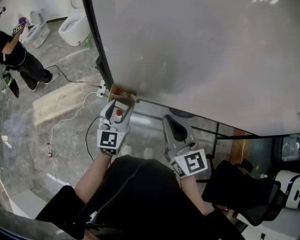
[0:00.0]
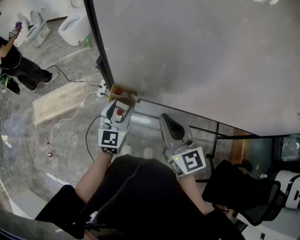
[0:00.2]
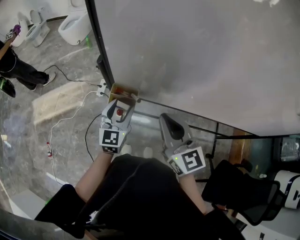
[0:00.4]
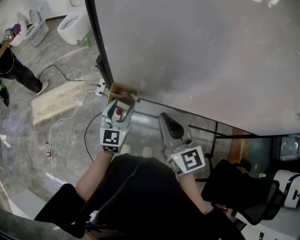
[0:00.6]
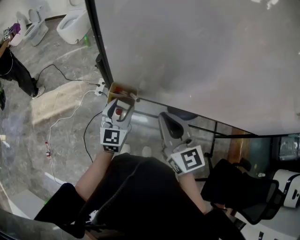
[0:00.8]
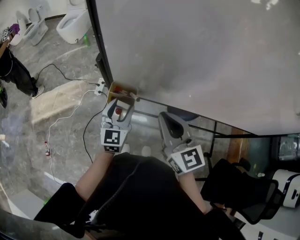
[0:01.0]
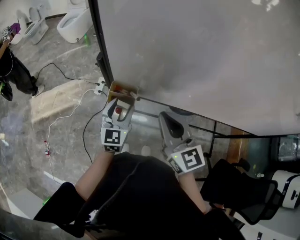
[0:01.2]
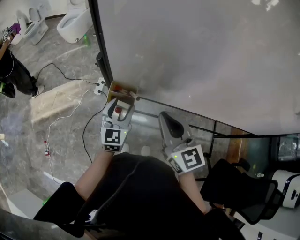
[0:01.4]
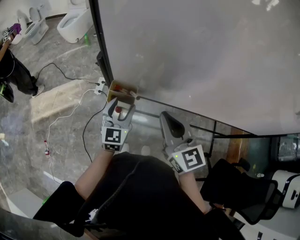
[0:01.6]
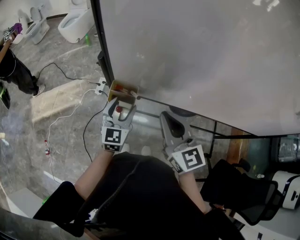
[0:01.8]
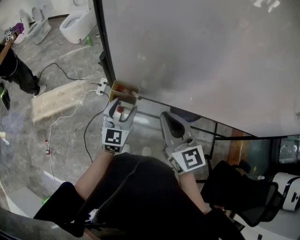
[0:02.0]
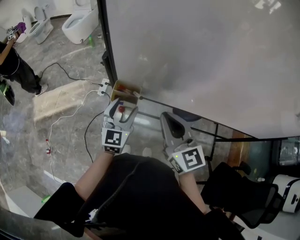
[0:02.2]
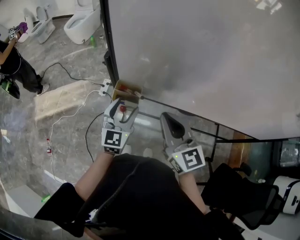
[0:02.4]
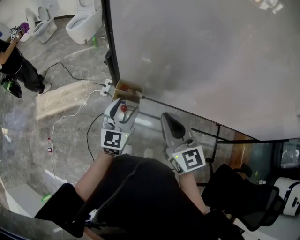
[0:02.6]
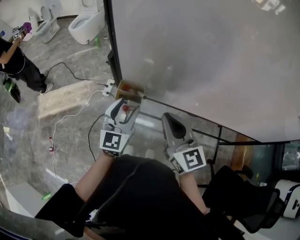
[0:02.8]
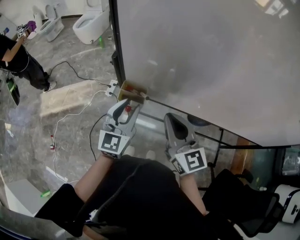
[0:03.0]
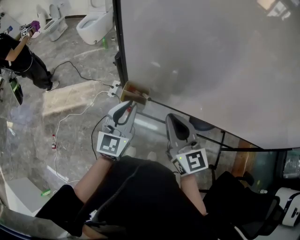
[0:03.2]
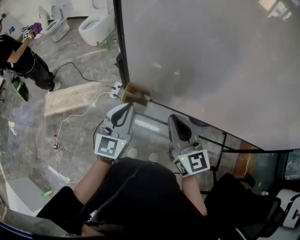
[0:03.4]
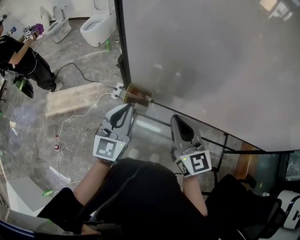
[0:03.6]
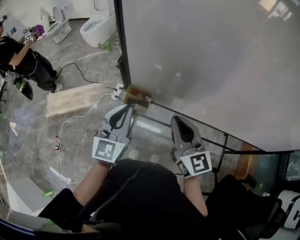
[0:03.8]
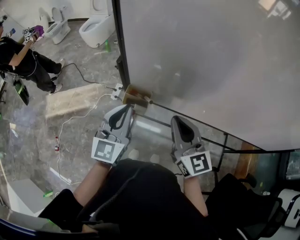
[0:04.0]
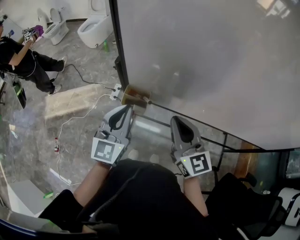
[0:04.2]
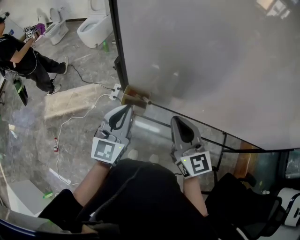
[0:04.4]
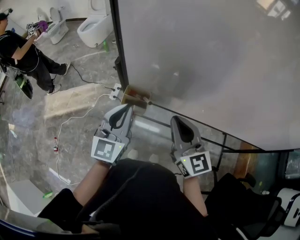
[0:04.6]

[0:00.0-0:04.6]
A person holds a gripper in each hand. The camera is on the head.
0:00.0 to 0:01.6: The grippers make only small movements.
0:01.6 to 0:03.0: The left gripper shifts about 10 cm upward, and closes its fingers.
0:03.0 to 0:04.6: The left gripper shifts by about 5 cm, and closes.

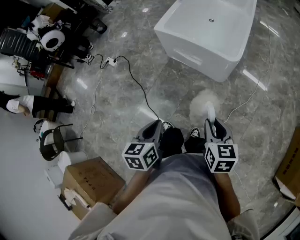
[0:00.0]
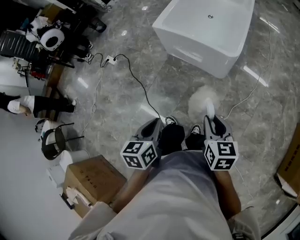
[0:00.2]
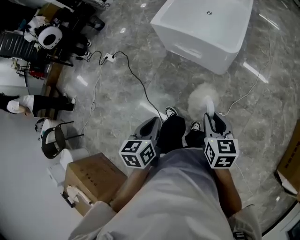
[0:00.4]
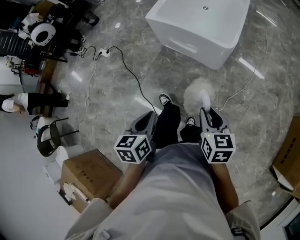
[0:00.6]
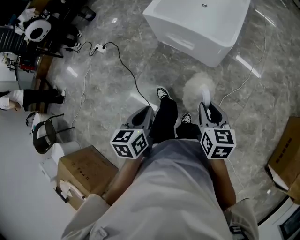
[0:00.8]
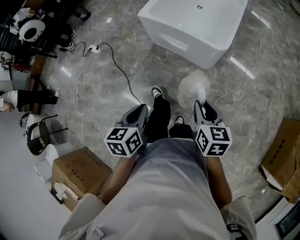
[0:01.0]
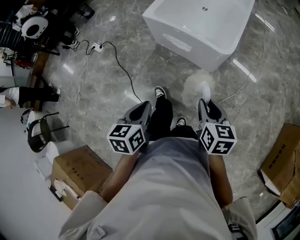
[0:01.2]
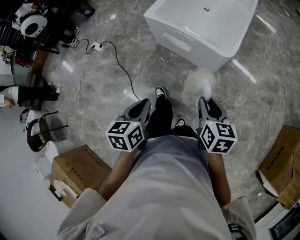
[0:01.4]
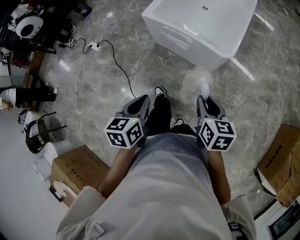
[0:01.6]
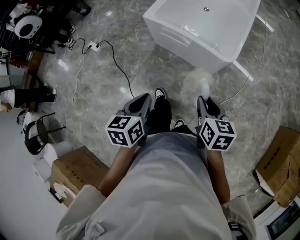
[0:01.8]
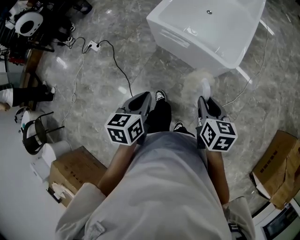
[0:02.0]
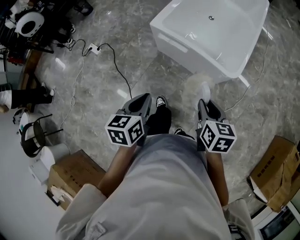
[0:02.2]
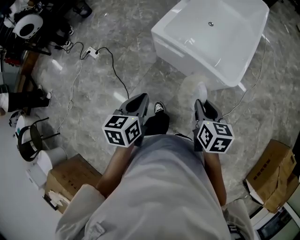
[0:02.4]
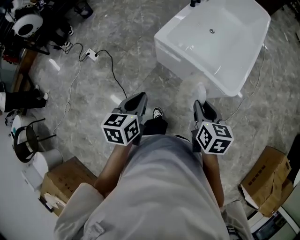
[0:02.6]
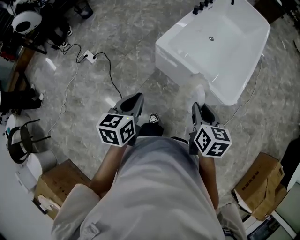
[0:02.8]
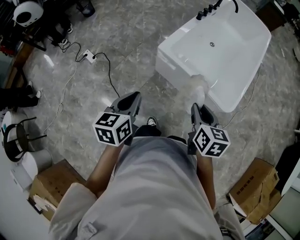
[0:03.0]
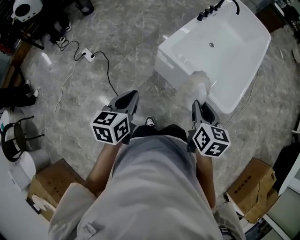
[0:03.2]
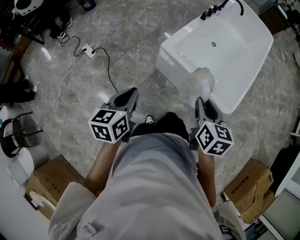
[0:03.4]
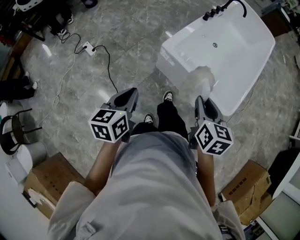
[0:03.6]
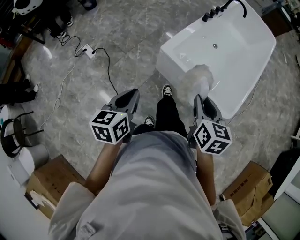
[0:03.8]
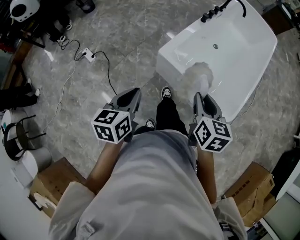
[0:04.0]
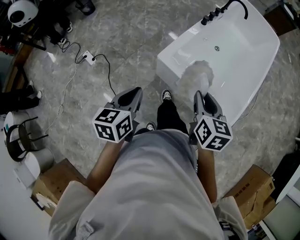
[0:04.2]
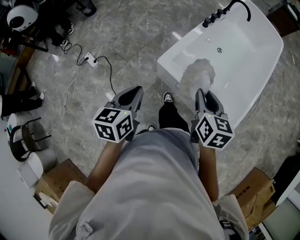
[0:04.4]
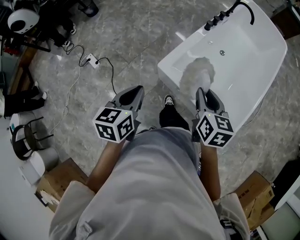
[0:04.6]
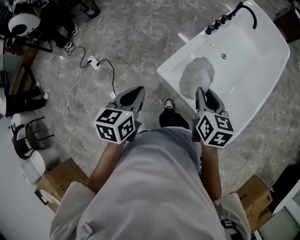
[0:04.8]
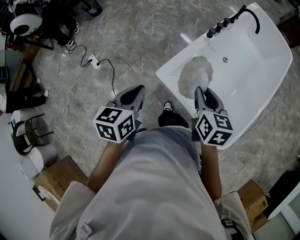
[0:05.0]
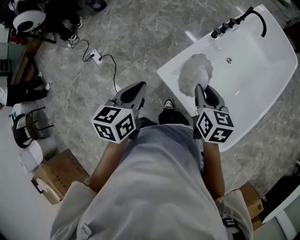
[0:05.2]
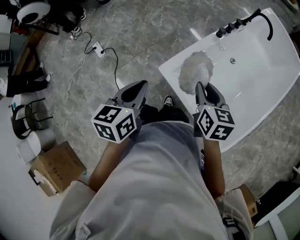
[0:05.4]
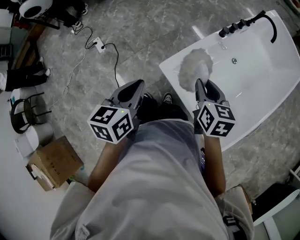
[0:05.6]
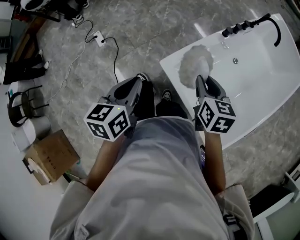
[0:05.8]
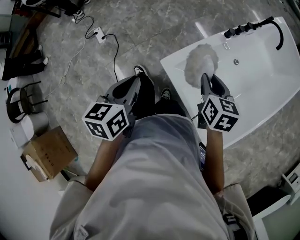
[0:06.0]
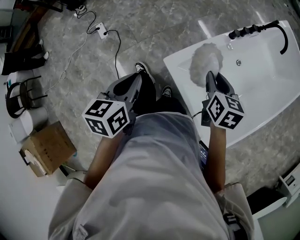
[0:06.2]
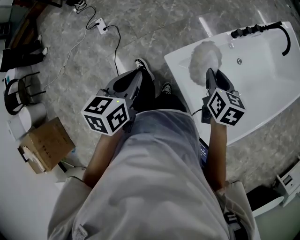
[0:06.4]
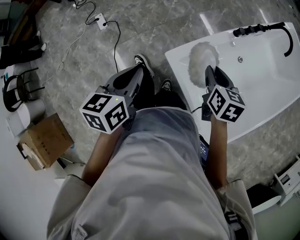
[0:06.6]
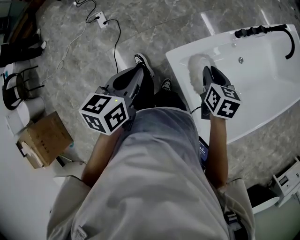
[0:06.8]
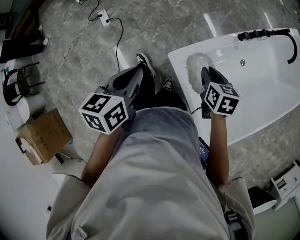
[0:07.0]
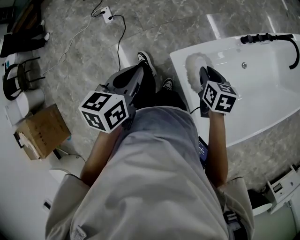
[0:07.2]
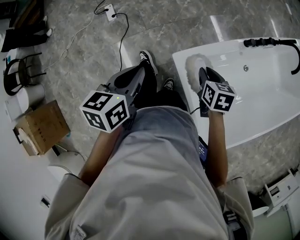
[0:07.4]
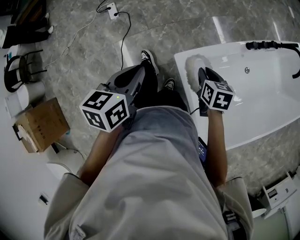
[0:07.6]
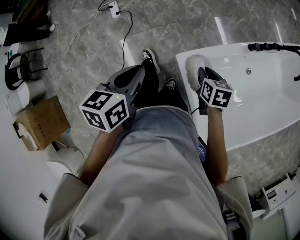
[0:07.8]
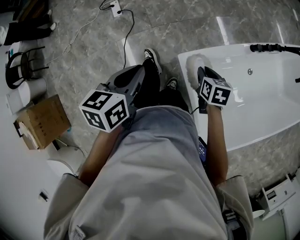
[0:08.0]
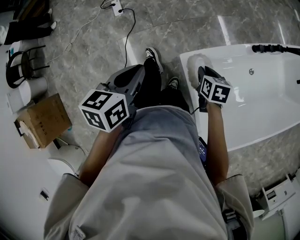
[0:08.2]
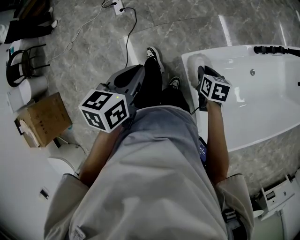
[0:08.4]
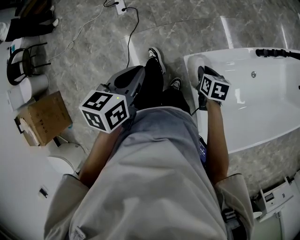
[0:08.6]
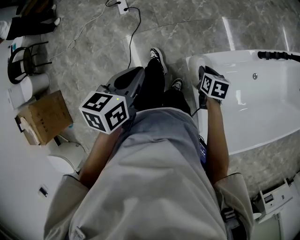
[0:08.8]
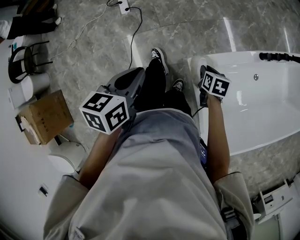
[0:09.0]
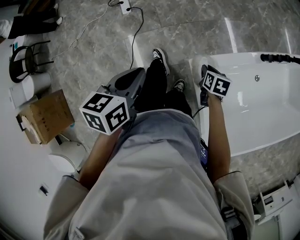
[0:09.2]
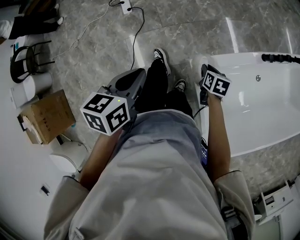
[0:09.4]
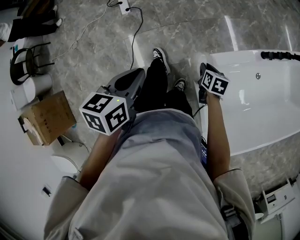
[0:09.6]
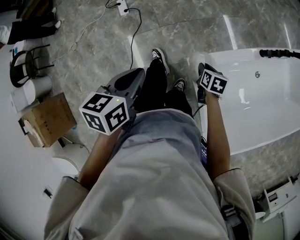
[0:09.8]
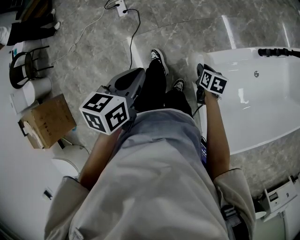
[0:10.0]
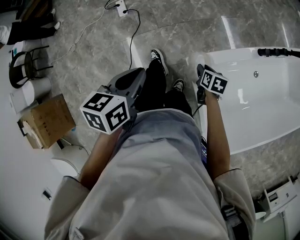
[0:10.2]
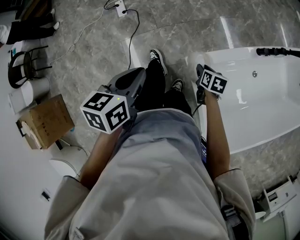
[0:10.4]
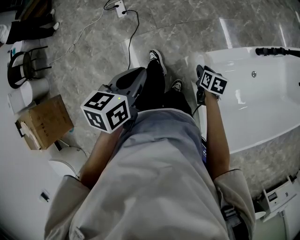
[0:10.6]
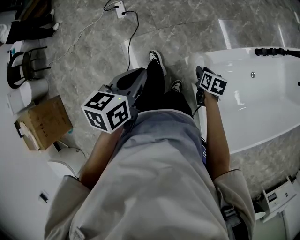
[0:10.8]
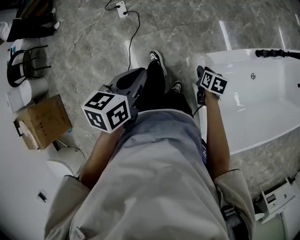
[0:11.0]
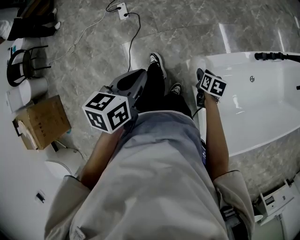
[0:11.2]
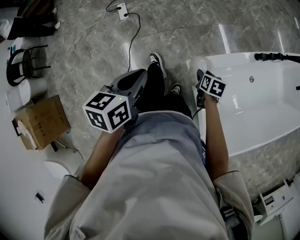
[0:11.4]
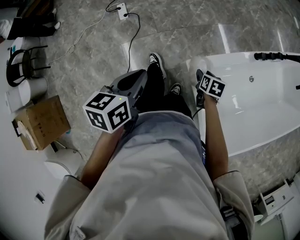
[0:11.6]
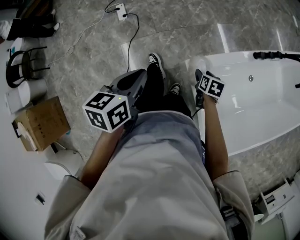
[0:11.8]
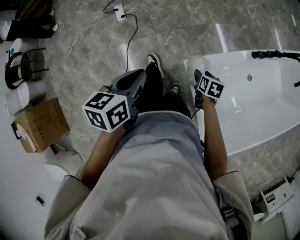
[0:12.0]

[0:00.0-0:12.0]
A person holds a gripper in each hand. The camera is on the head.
0:00.0 to 0:01.6: The grippers both shift forward by roughly 10 cm.
0:01.6 to 0:03.0: The two grippers go about 30 cm forward and to the left.
0:03.0 to 0:04.4: Both grippers move forward, some 20 cm.
0:04.4 to 0:06.0: The left gripper shifts some 10 cm forward. The right gripper moves forward, about 20 cm.
0:06.0 to 0:07.6: The left gripper changes place by some 5 cm; the right gripper is displaced downward and to the left by approximately 15 cm, and swivels roughly 20 degrees.
0:07.6 to 0:09.0: The right gripper travels downward by approximately 10 cm; the left gripper shifts about 5 cm to the left.
0:09.0 to 0:12.0: The grippers stay close to where they were, moving slightly.

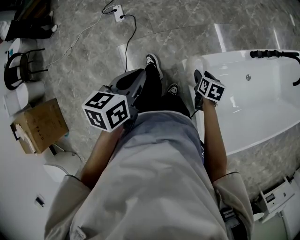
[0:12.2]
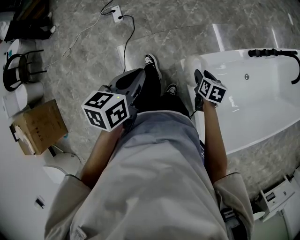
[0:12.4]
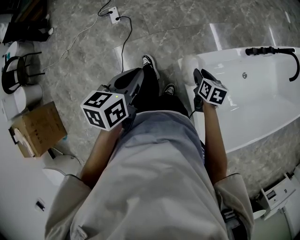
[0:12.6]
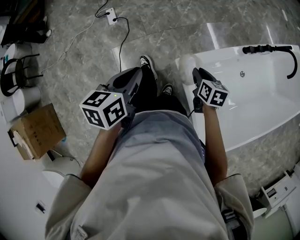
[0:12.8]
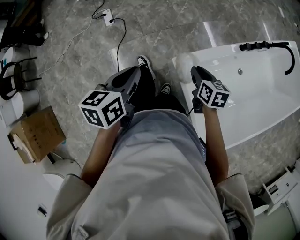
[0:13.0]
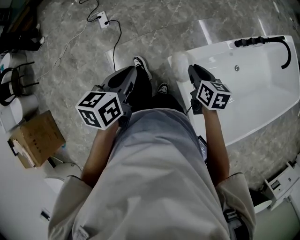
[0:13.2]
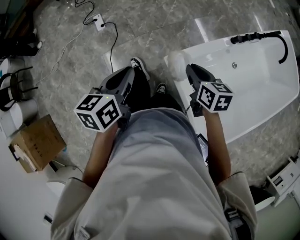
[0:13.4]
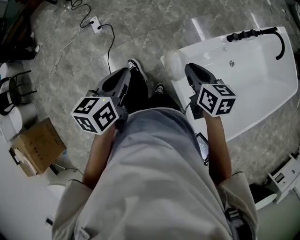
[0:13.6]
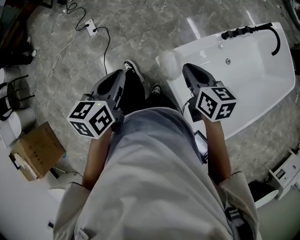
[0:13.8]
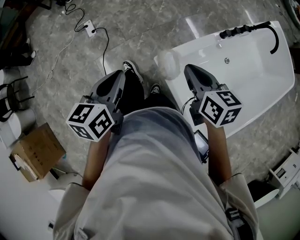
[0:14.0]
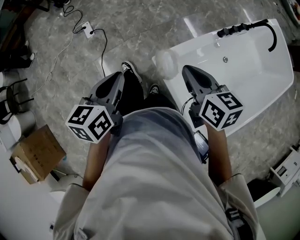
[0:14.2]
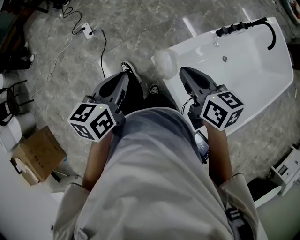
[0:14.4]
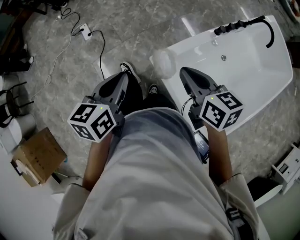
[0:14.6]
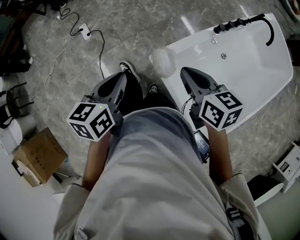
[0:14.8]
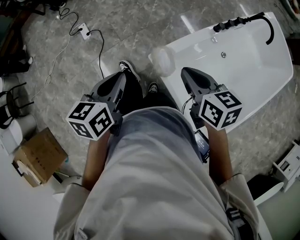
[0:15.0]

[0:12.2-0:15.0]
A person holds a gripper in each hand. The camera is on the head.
0:12.2 to 0:13.6: The right gripper shifts roughly 20 cm upward, rotates some 20 degrees, and closes its fingers.
0:13.6 to 0:15.0: The right gripper heads upward, covering about 5 cm.

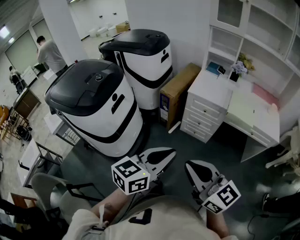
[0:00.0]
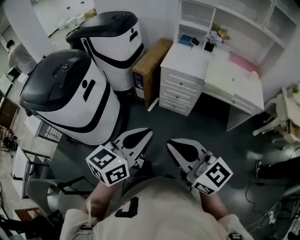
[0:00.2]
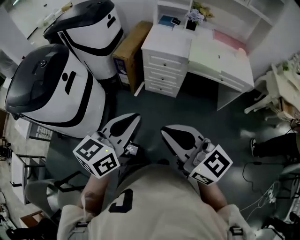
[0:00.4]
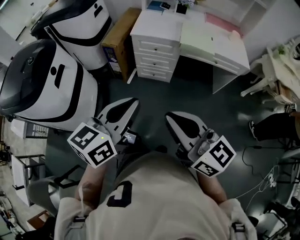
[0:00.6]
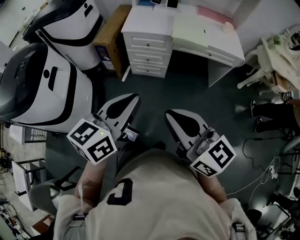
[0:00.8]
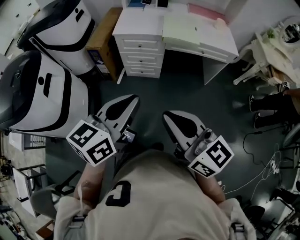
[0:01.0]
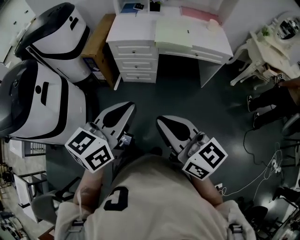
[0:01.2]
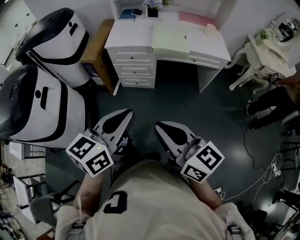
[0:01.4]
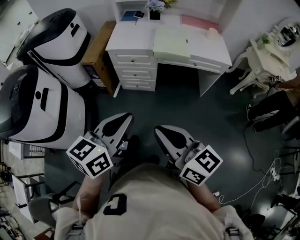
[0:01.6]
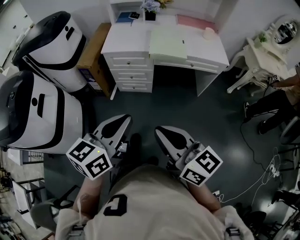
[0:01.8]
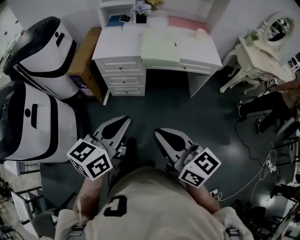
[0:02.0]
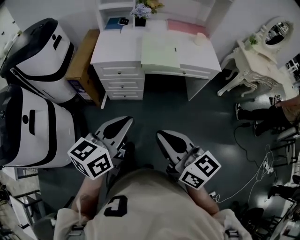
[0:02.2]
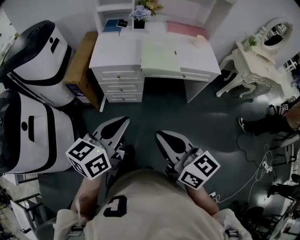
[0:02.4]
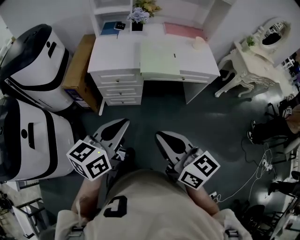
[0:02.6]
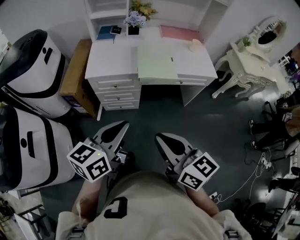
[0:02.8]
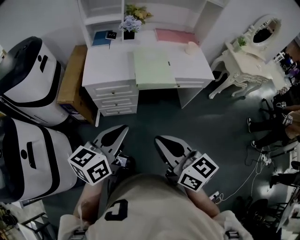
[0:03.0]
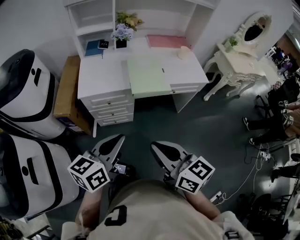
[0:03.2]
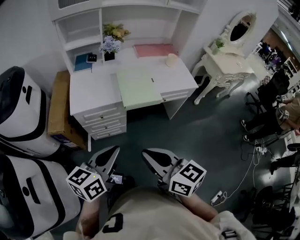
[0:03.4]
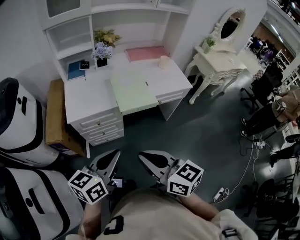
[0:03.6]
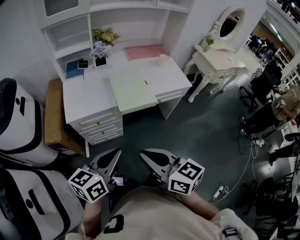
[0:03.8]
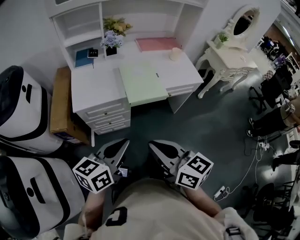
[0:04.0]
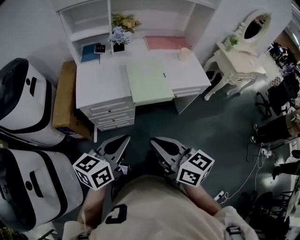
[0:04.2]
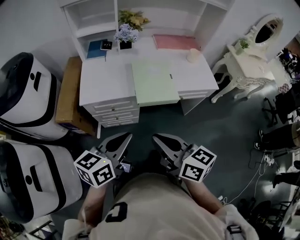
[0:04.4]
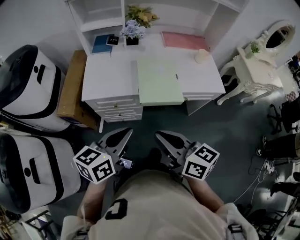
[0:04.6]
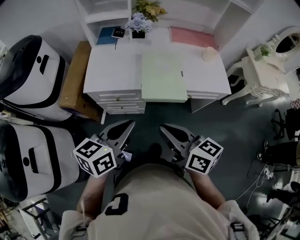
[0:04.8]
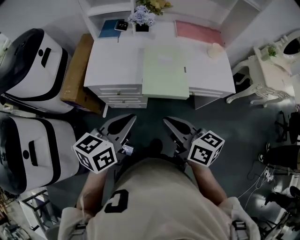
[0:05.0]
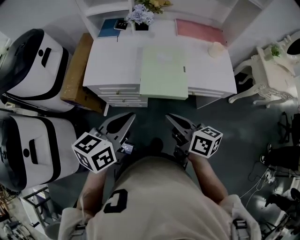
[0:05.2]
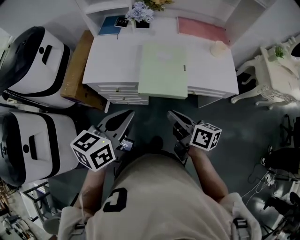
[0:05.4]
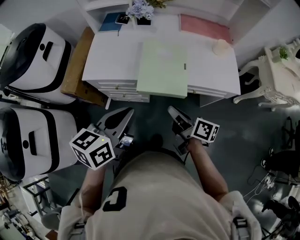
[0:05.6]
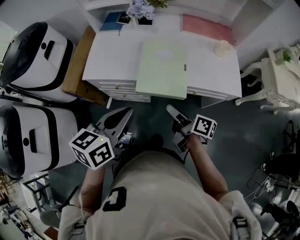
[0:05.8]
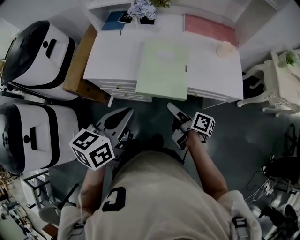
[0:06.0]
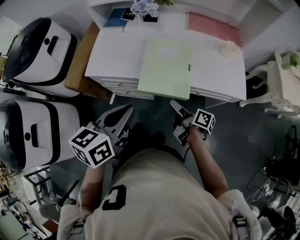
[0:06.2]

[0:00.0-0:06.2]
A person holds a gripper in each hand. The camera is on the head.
0:00.0 to 0:01.6: The grippers both shift to the right by some 15 cm. The right gripper rotates about 20 degrees.
0:01.6 to 0:03.2: Both grippers travel together forward, about 20 cm.
0:03.2 to 0:04.6: Both grippers travel together forward, roughly 10 cm.
0:04.6 to 0:06.2: The left gripper goes approximately 10 cm to the right and forward. The right gripper goes approximately 30 cm downward, to the right and forward, twists about 50 degrees clockwise, seen from behind, and opens up.
